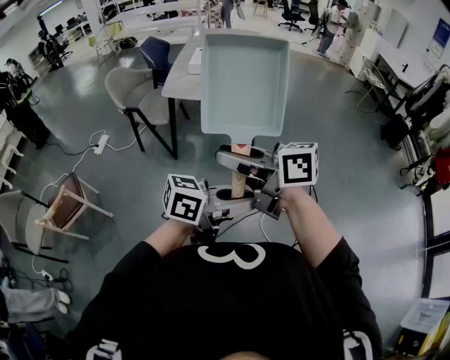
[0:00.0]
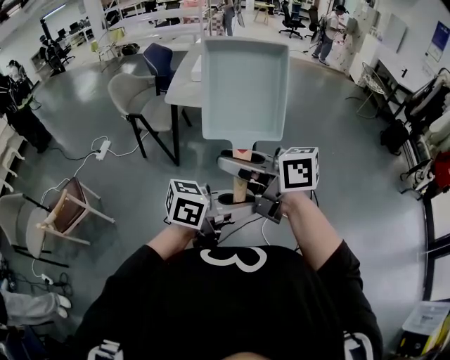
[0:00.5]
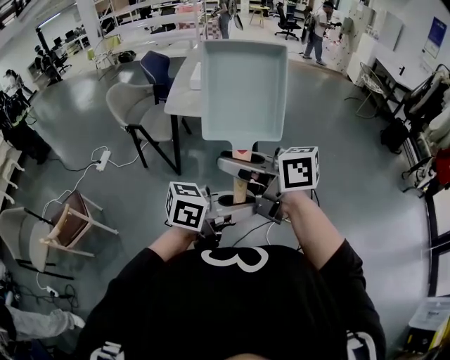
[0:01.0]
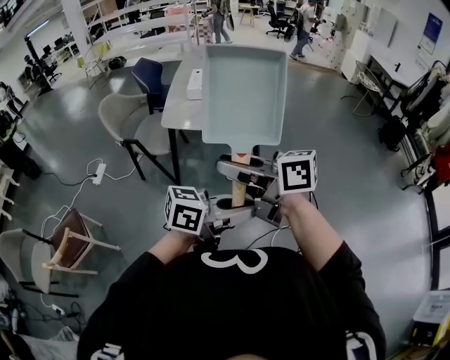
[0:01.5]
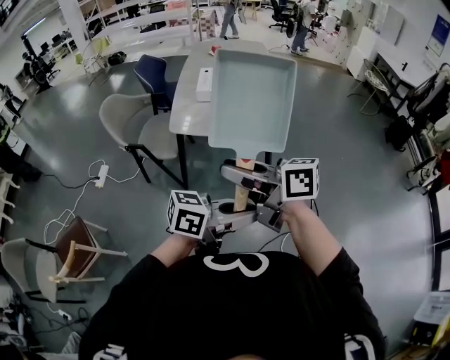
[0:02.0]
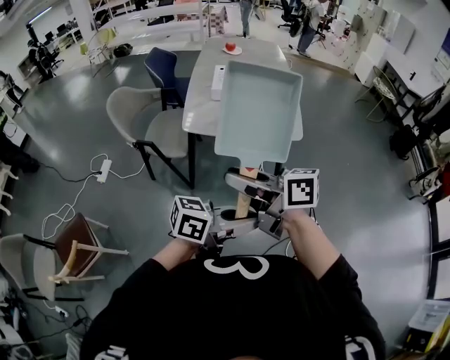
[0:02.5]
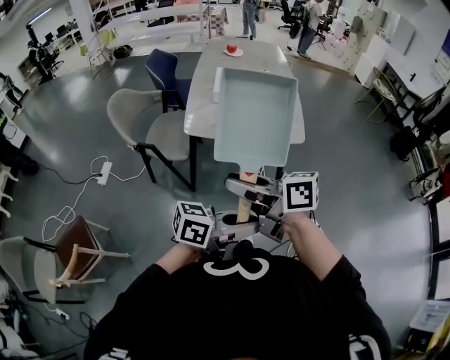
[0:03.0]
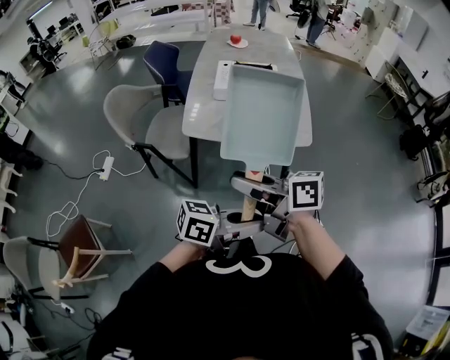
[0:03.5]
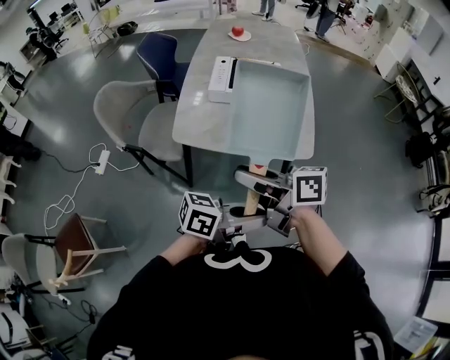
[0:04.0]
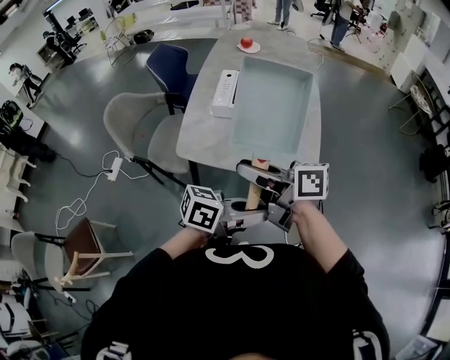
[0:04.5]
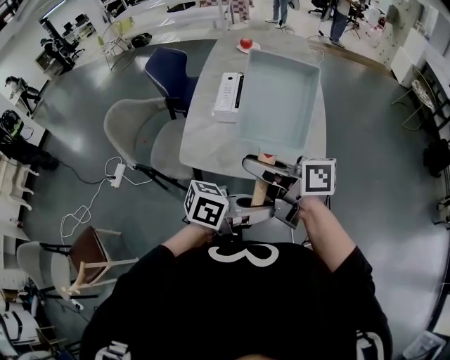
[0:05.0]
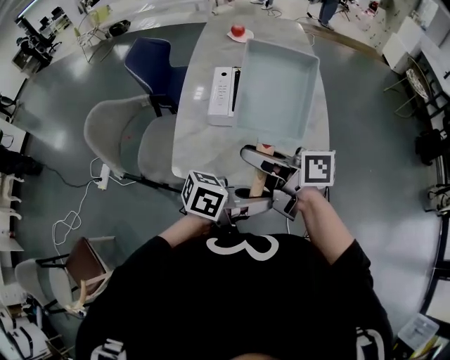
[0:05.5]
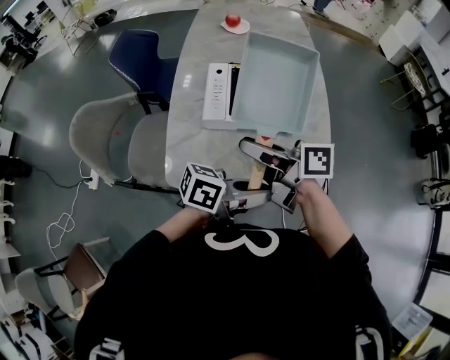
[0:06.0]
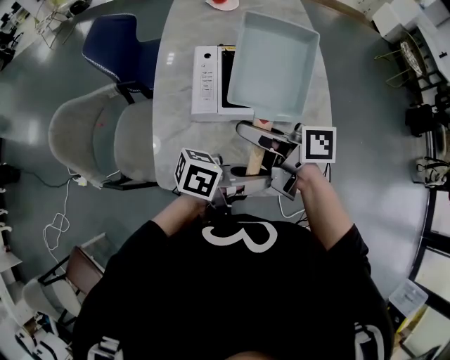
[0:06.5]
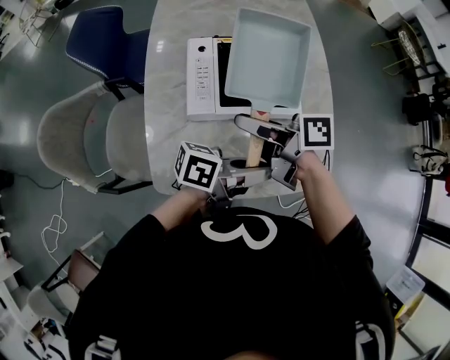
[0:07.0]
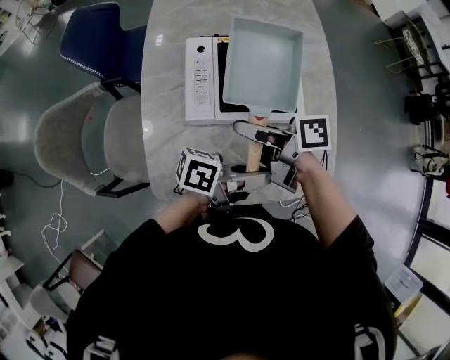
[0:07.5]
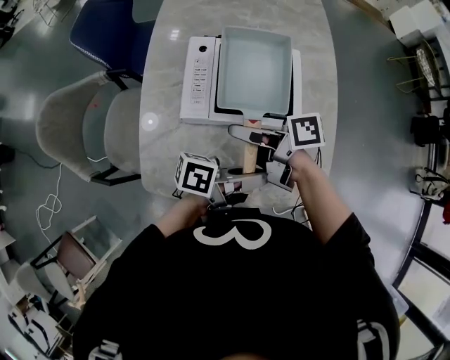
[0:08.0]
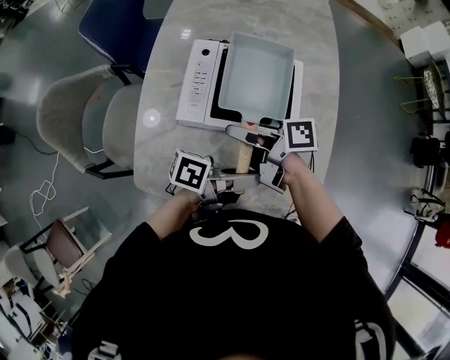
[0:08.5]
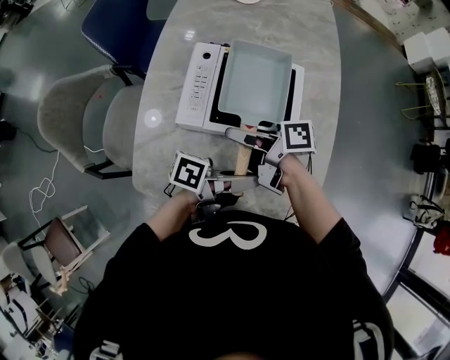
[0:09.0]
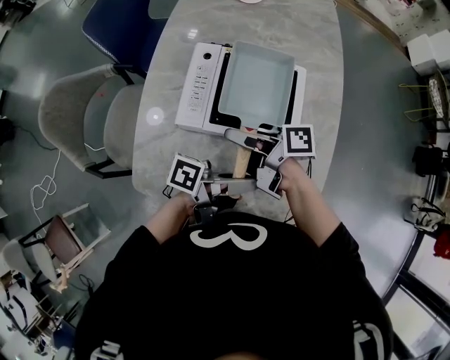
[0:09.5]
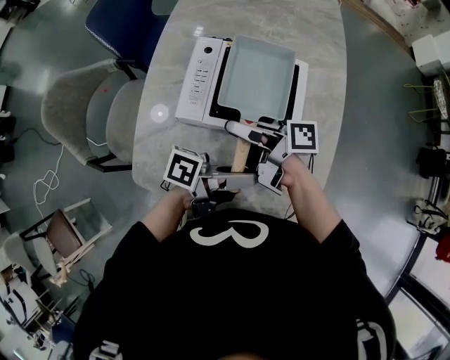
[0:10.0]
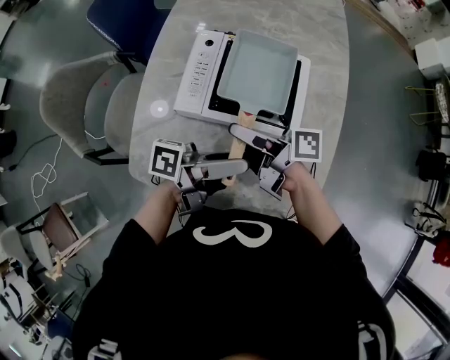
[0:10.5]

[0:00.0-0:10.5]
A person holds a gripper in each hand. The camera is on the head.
0:00.0 to 0:02.0: The right gripper moves roughly 25 cm. The left gripper ends up roughly 25 cm from where it was.
0:02.0 to 0:04.0: The right gripper ends up about 25 cm from where it was. Meanwhile the left gripper changes place by roughly 20 cm.
0:04.0 to 0:06.5: The right gripper moves approximately 35 cm, while the left gripper ends up approximately 35 cm from where it was.
0:06.5 to 0:08.5: The right gripper is displaced downward by approximately 10 cm, and swivels roughly 20 degrees, while the left gripper shifts by roughly 10 cm, and rotates roughly 20 degrees.
0:08.5 to 0:10.5: The right gripper opens its fingers. The left gripper opens.

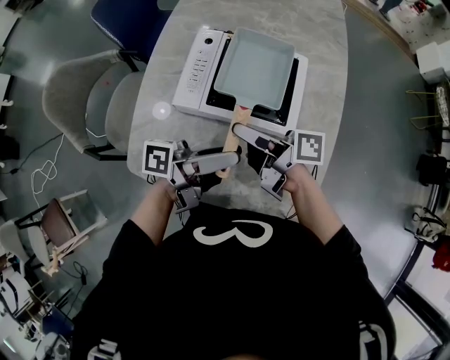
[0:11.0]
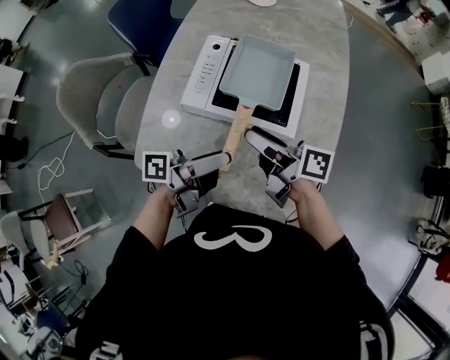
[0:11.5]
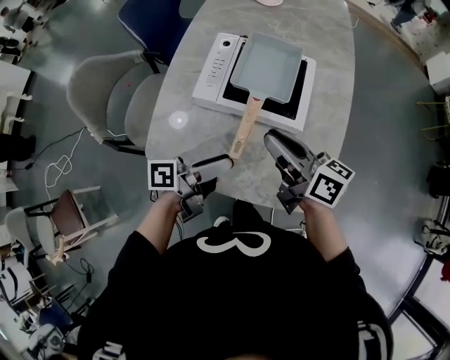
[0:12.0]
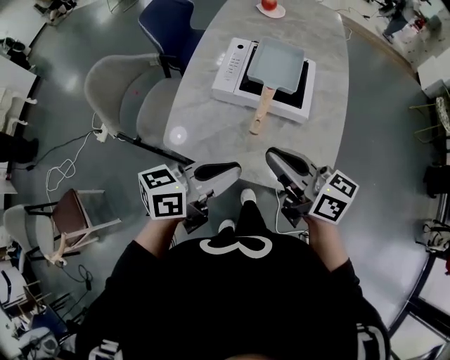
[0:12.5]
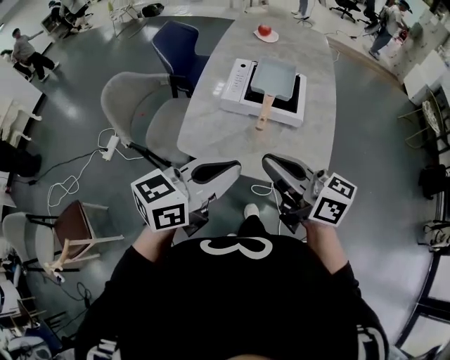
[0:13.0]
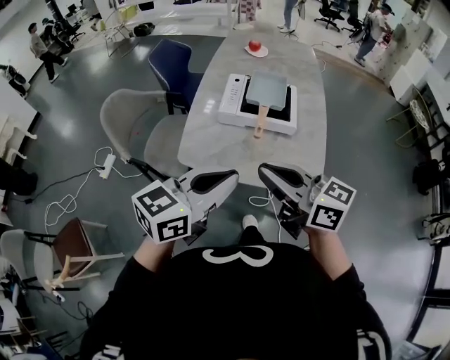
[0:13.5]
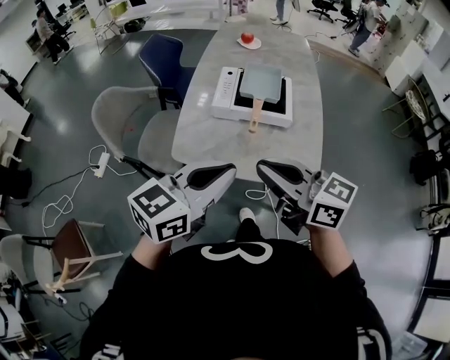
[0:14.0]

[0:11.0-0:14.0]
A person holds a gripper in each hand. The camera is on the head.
0:11.0 to 0:12.5: The right gripper changes place by approximately 20 cm, swivels approximately 40 degrees, and closes up, while the left gripper changes place by roughly 20 cm, changes its angle by about 40 degrees, and closes.
0:12.5 to 0:14.0: The left gripper heads upward and backward, covering some 15 cm, and rotates approximately 30 degrees. The right gripper is displaced backward, upward and to the left by approximately 15 cm.

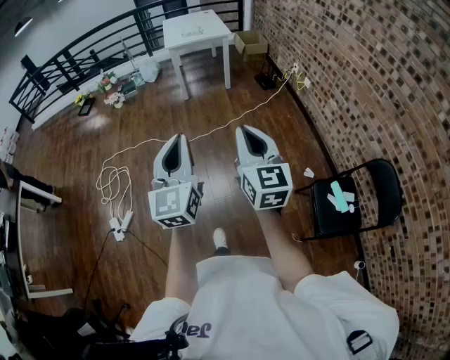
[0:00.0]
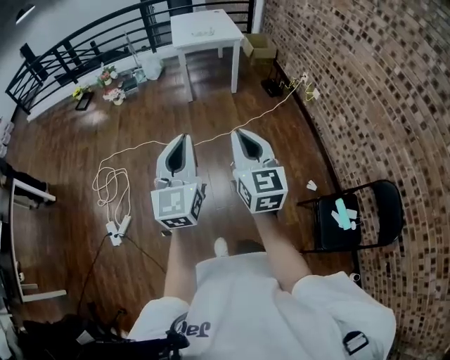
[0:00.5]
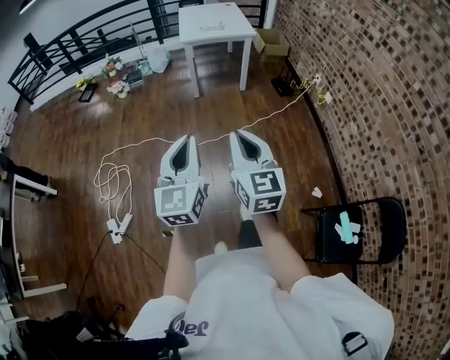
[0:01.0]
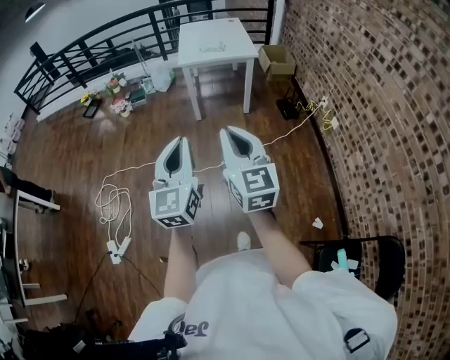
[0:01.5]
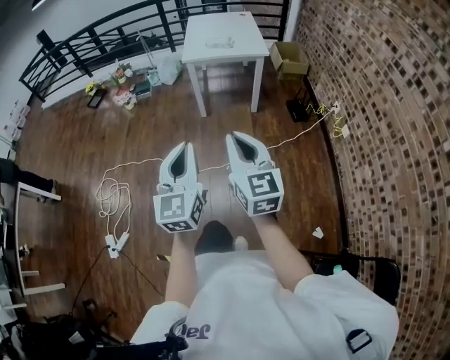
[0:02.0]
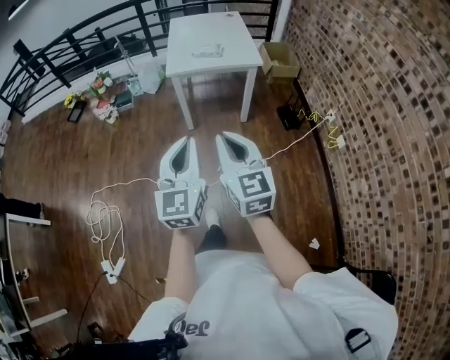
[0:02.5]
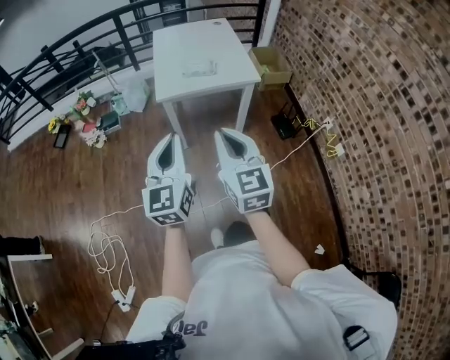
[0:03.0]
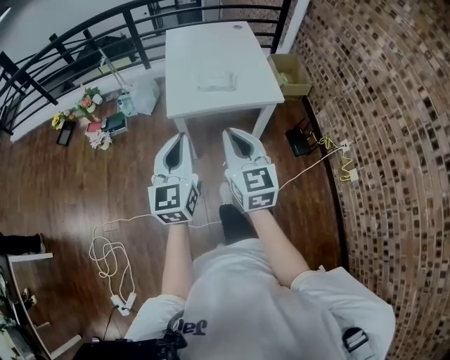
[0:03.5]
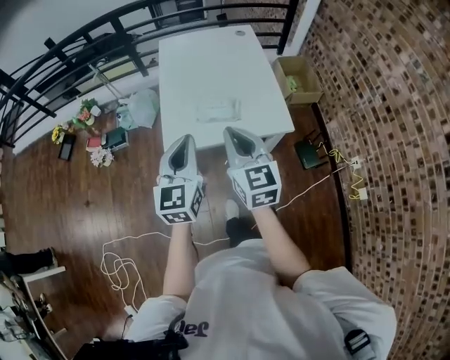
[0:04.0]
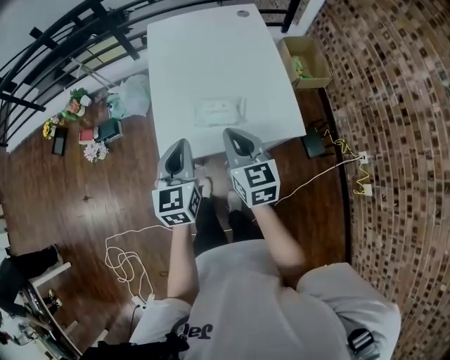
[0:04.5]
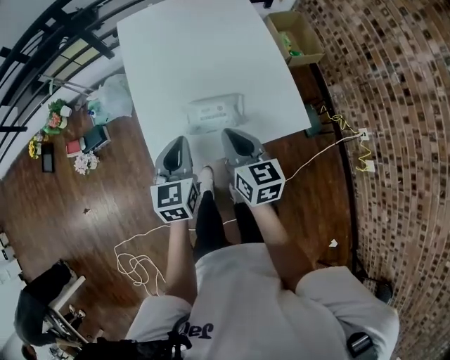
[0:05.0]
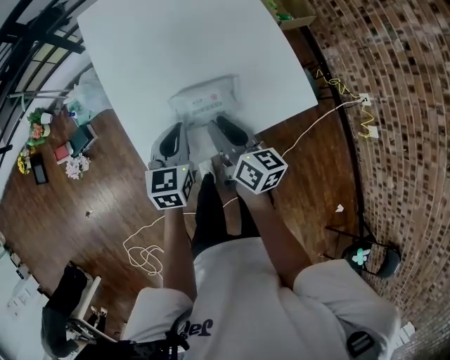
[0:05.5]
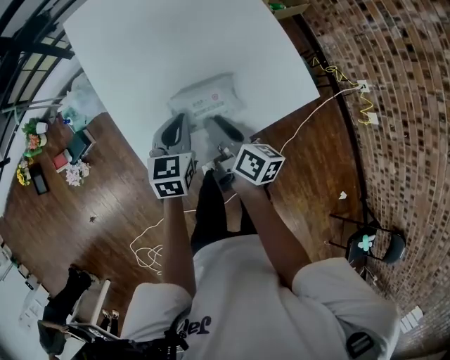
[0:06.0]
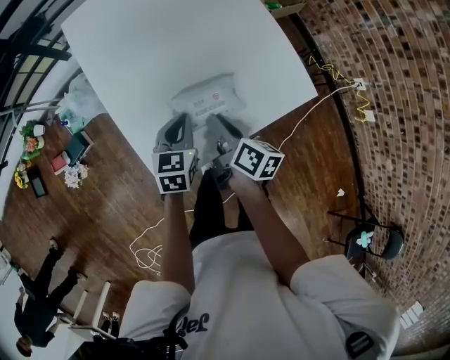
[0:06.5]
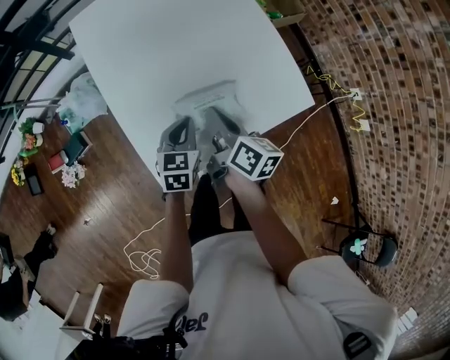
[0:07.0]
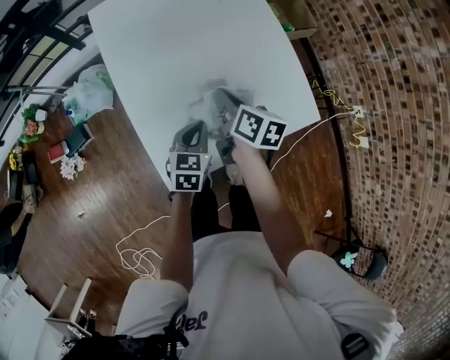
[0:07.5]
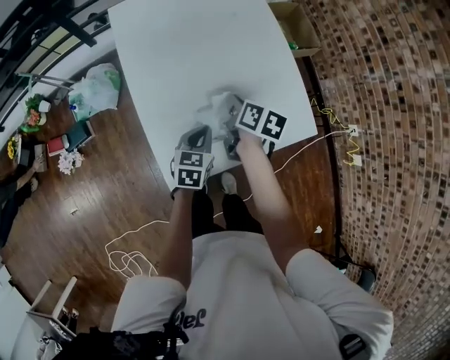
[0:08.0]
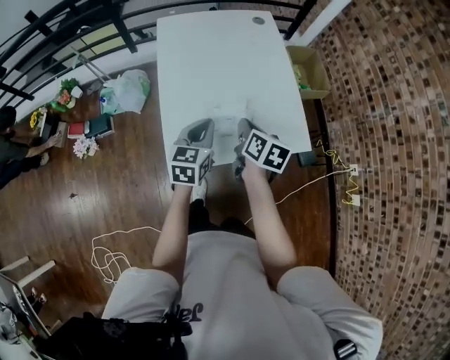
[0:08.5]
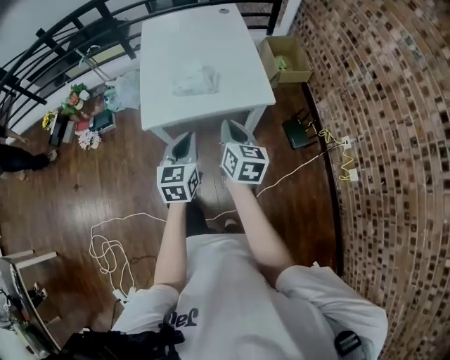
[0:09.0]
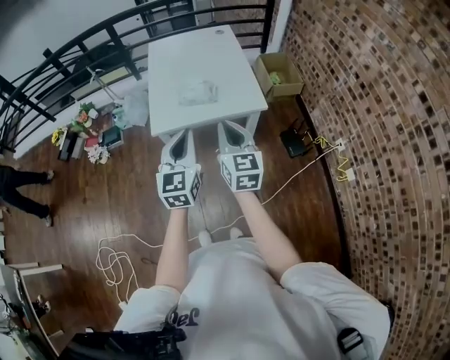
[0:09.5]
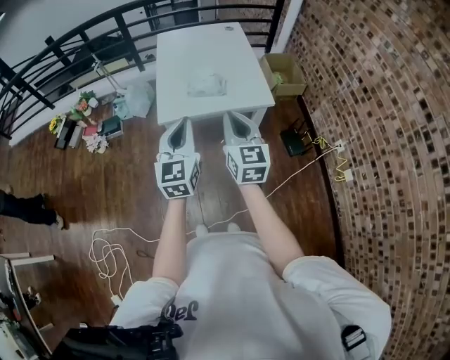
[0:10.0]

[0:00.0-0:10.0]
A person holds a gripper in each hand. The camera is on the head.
0:00.0 to 0:02.0: The two grippers travel together, forward, roughly 50 cm.
0:02.0 to 0:04.0: The pair of grippers is taken forward, approximately 80 cm.
0:04.0 to 0:06.0: The two grippers go roughly 35 cm downward and forward. The left gripper turns by approximately 40 degrees. Meanwhile the right gripper rolls clockwise, seen from behind, by about 60 degrees, and opens up.
0:06.0 to 0:08.0: The right gripper heads forward, covering roughly 10 cm, turns by about 20 degrees, and closes up.
0:08.0 to 0:10.0: The grippers both shift backward and upward by roughly 50 cm. The right gripper angles its fingers upward, by some 40 degrees, while the left gripper angles its fingers upward, by approximately 40 degrees.

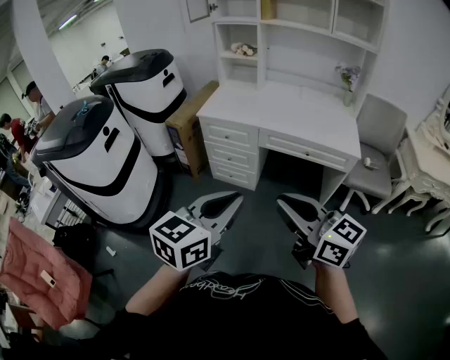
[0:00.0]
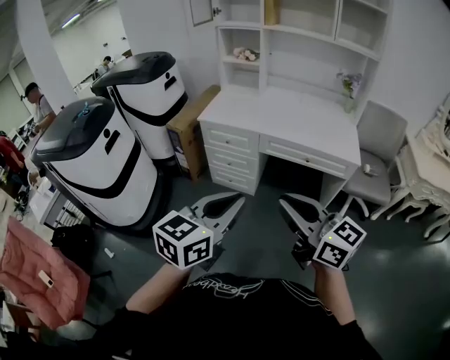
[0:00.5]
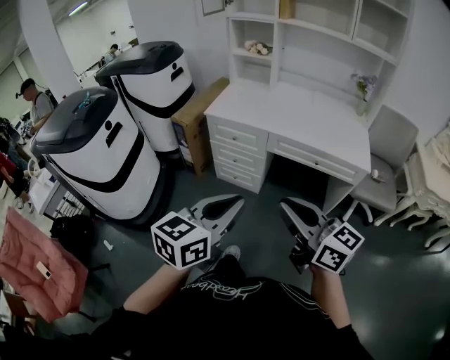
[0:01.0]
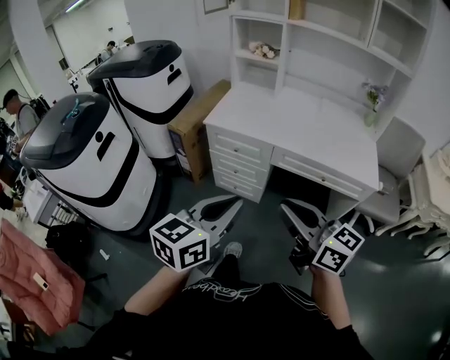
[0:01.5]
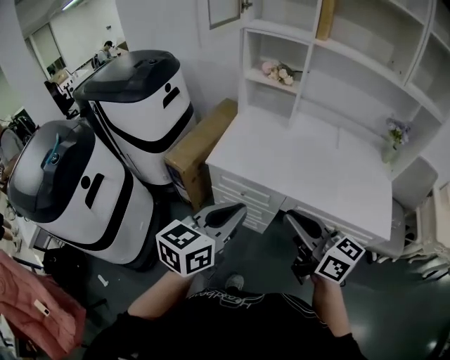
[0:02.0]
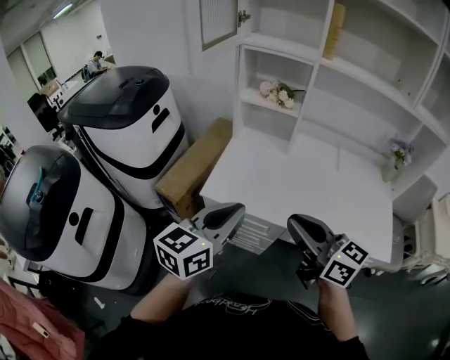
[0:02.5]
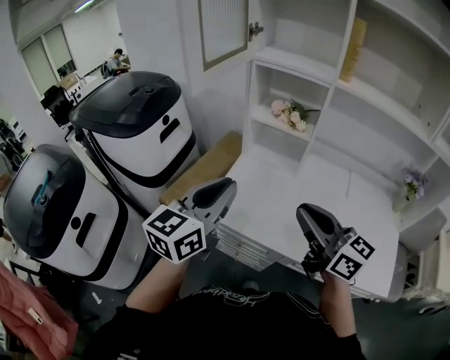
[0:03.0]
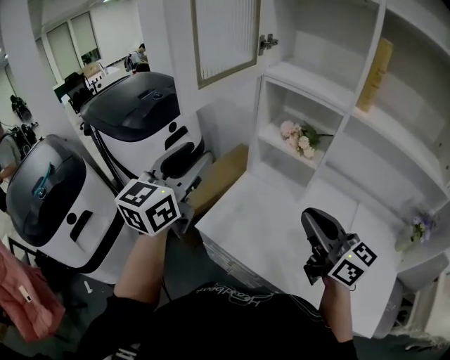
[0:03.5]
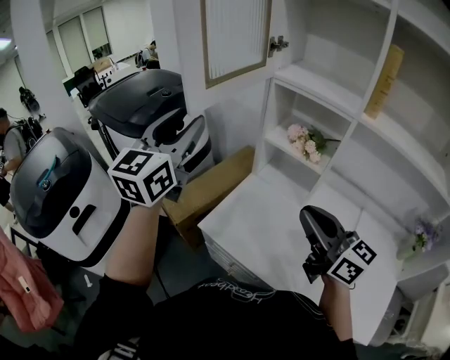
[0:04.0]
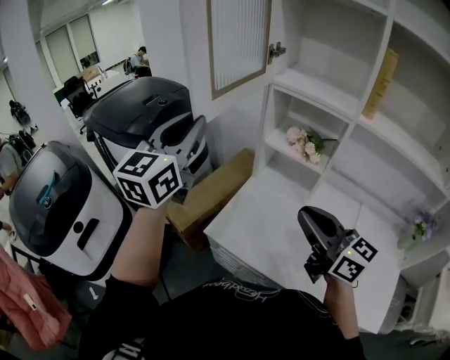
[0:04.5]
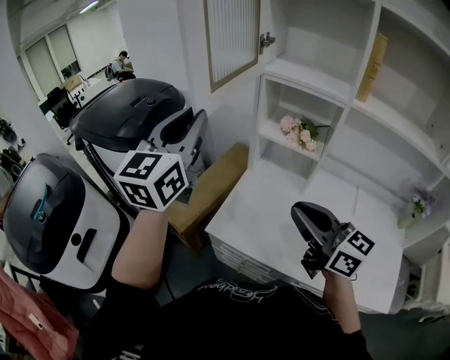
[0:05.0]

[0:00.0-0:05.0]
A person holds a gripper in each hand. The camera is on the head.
0:00.0 to 0:02.5: The two grippers travel together, forward, some 60 cm.
0:02.5 to 0:05.0: The right gripper travels forward by approximately 20 cm; the left gripper travels forward and upward by roughly 35 cm, changes its angle by roughly 40 degrees, and opens, then closes once more.
